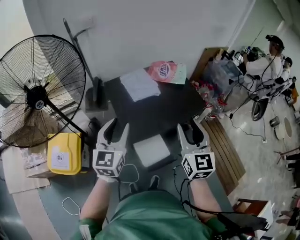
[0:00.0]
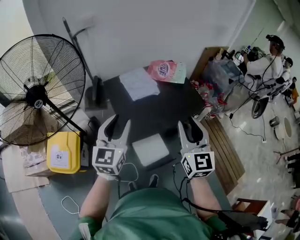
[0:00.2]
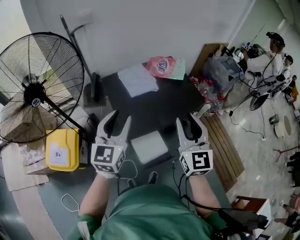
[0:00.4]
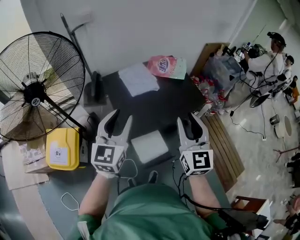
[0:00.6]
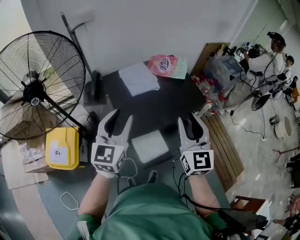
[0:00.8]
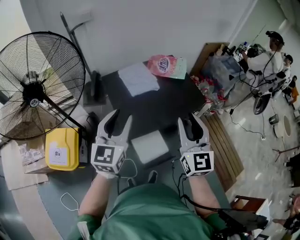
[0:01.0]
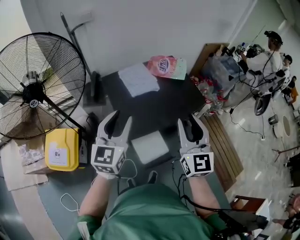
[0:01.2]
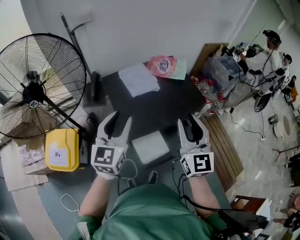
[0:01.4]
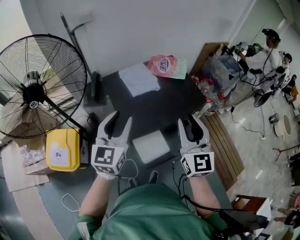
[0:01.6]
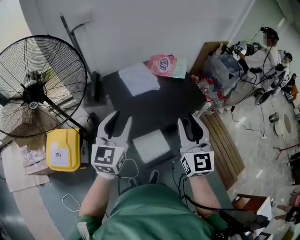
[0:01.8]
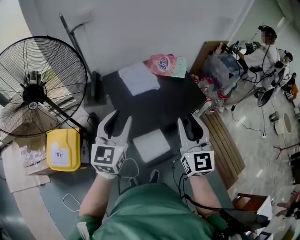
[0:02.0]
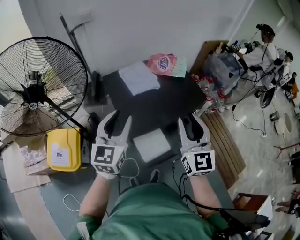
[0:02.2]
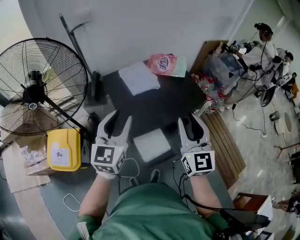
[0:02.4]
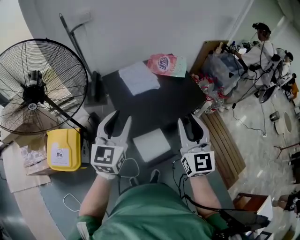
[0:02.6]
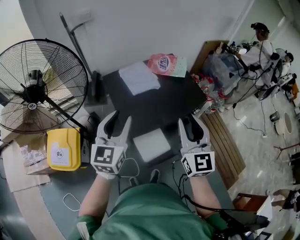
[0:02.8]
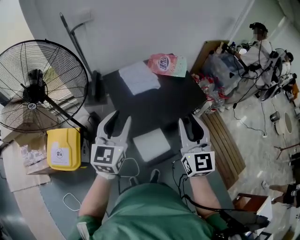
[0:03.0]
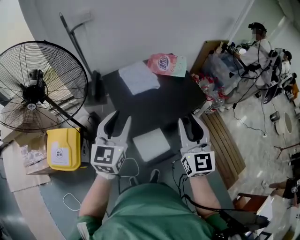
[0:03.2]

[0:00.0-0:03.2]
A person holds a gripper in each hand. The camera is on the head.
0.0 to 1.6 s: The grippers make only small movements.
1.6 to 3.2 s: The two grippers keep their place.

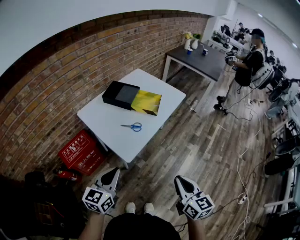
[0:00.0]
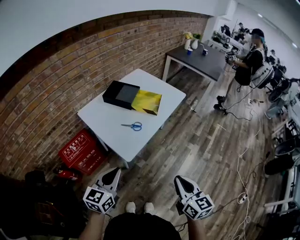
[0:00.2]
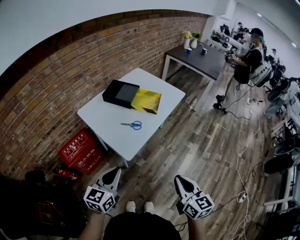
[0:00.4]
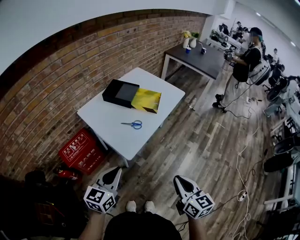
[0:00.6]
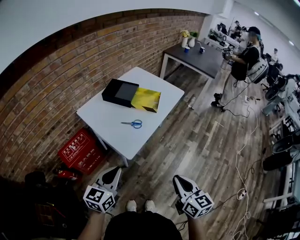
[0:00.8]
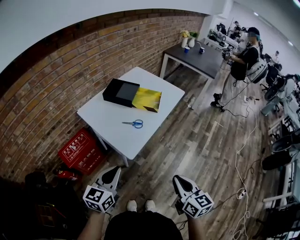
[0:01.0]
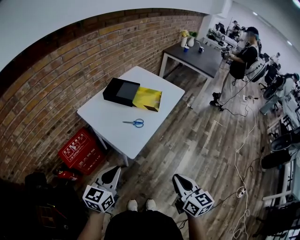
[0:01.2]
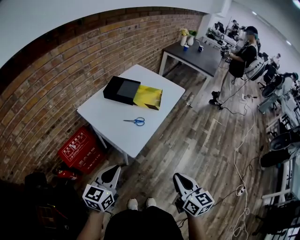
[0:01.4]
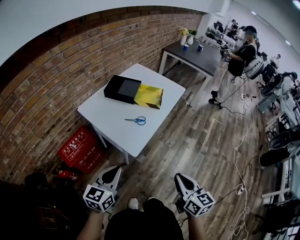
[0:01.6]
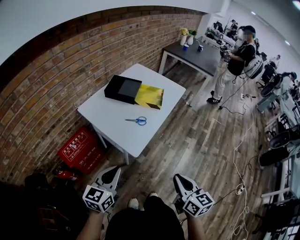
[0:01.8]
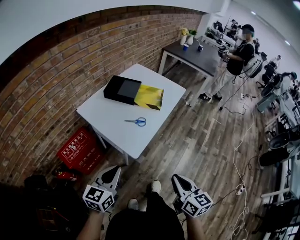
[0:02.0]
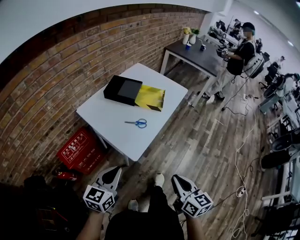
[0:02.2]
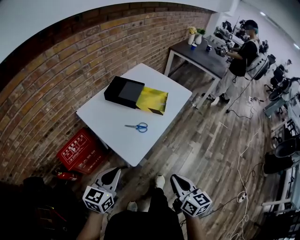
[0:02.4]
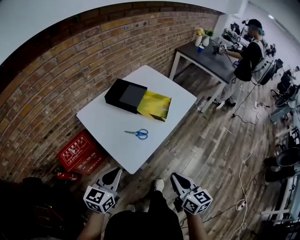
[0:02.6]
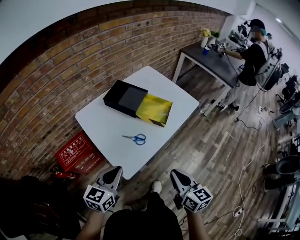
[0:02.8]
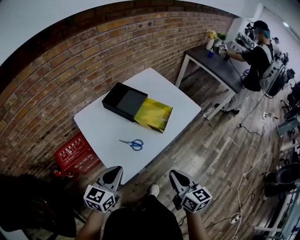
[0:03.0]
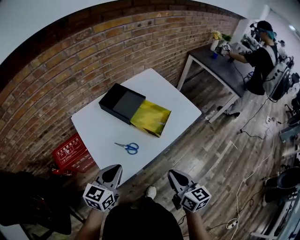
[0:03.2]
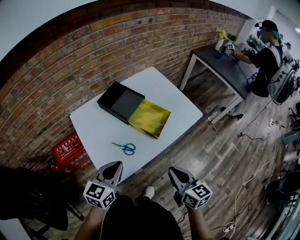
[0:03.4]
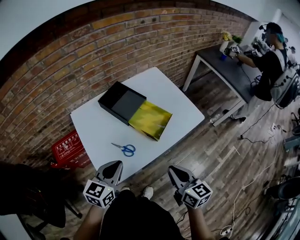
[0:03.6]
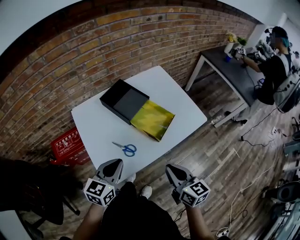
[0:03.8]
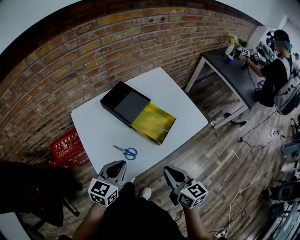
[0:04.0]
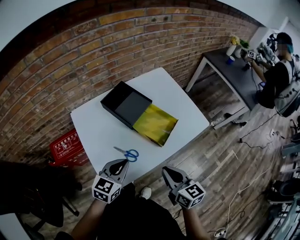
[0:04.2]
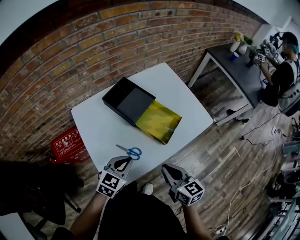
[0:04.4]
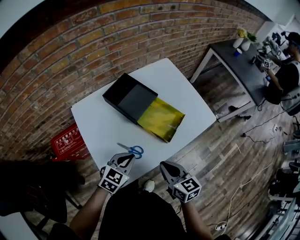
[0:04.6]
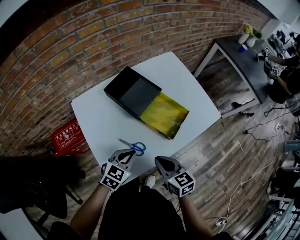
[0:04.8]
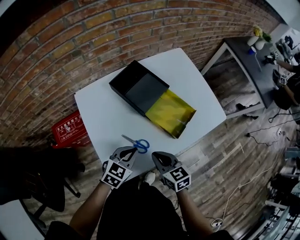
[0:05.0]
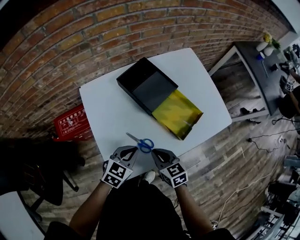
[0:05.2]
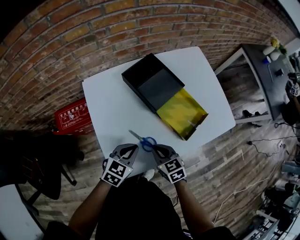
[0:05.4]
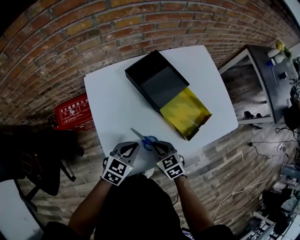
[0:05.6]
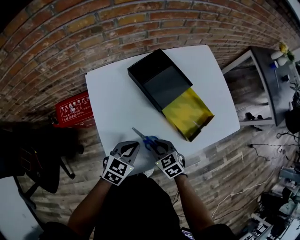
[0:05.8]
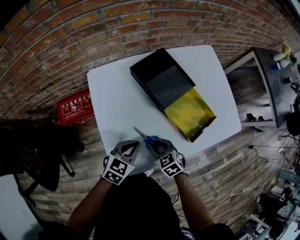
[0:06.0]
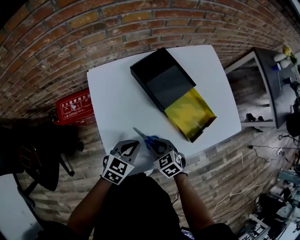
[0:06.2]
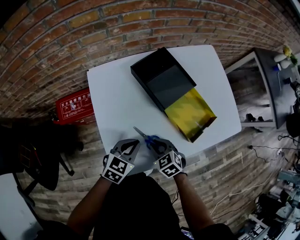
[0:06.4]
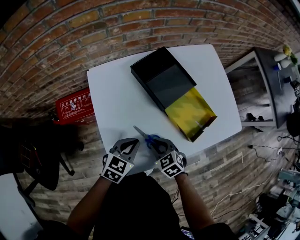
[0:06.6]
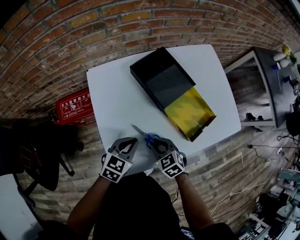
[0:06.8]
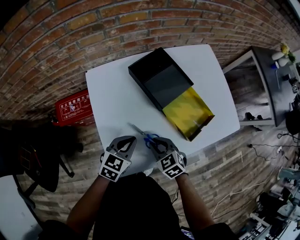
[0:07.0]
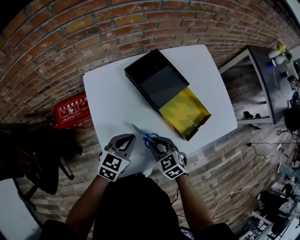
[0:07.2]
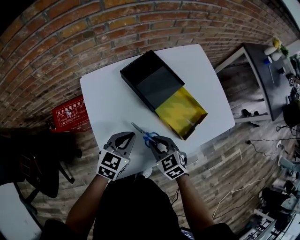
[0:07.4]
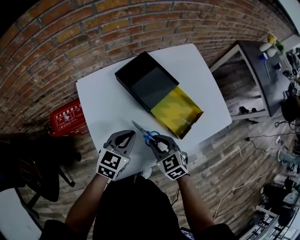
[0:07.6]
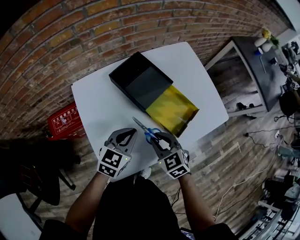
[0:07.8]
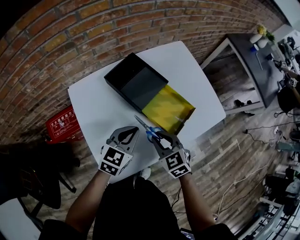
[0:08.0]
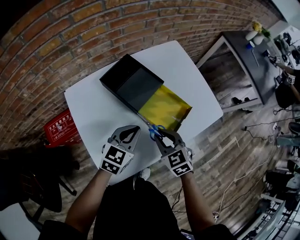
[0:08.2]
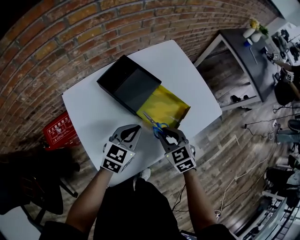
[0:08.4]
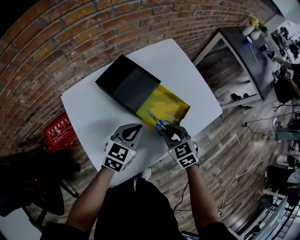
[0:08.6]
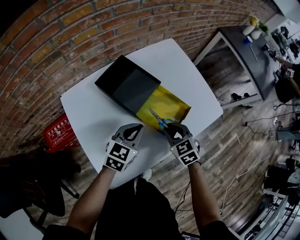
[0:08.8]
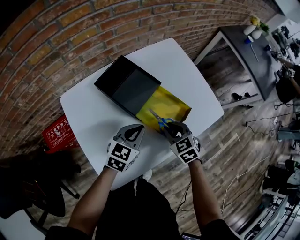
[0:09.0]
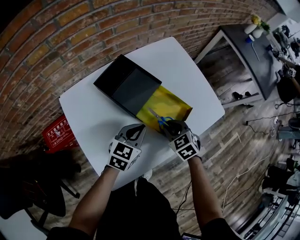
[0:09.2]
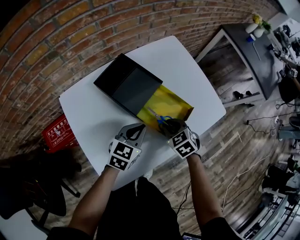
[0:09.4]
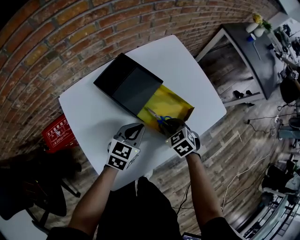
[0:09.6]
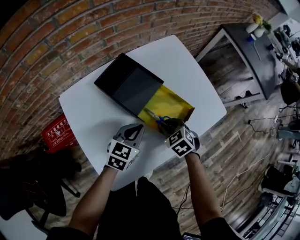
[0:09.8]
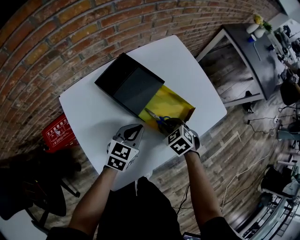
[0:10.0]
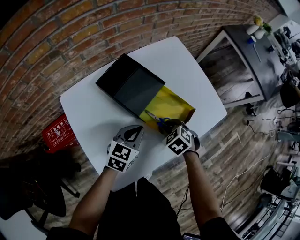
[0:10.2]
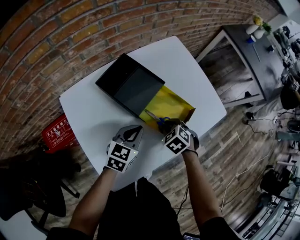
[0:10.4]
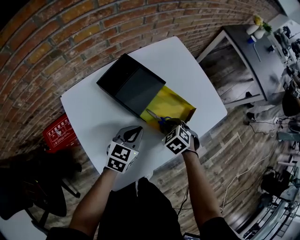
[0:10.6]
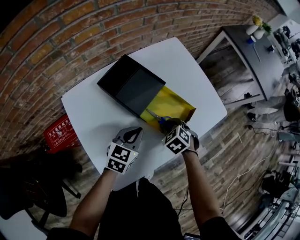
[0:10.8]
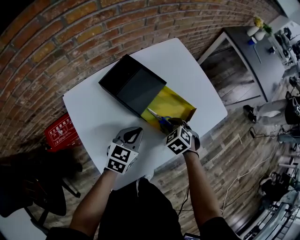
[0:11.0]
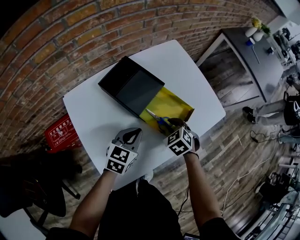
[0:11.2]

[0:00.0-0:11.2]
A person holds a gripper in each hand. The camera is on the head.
0.0 to 1.6 s: The grippers both shift to the left by about 5 cm.
1.6 to 3.2 s: The right gripper heads forward, covering some 30 cm, and rotates roughly 20 degrees. Meanwhile the left gripper is displaced forward and to the right by approximately 25 cm.
3.2 to 4.8 s: The right gripper shifts some 20 cm forward, downward and to the left, and changes its angle by about 20 degrees. Meanwhile the left gripper shifts some 15 cm downward and forward, and changes its angle by approximately 20 degrees.
4.8 to 6.4 s: The right gripper heads downward and to the left, covering roughly 15 cm, and turns by some 40 degrees; the left gripper is displaced to the left by about 5 cm.
6.4 to 8.0 s: The left gripper moves to the right, upward and forward, some 10 cm, while the right gripper is displaced upward and to the right by roughly 15 cm.
8.0 to 9.6 s: The right gripper moves forward, downward and to the right, approximately 10 cm, while the left gripper shifts some 5 cm downward.
9.6 to 11.2 s: The grippers move only a little.

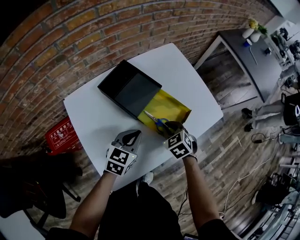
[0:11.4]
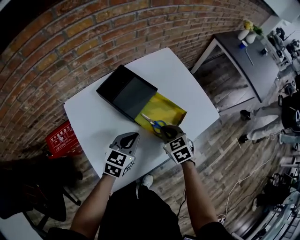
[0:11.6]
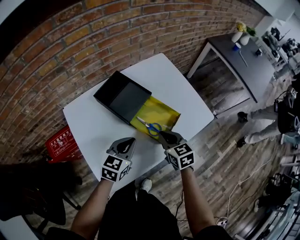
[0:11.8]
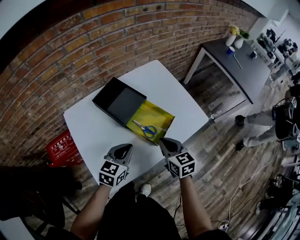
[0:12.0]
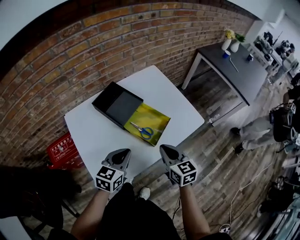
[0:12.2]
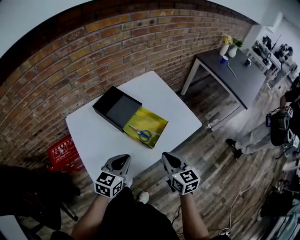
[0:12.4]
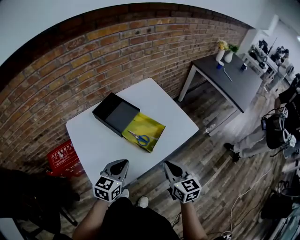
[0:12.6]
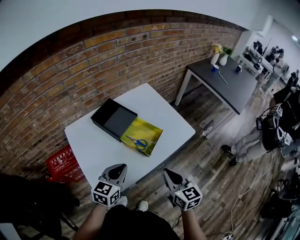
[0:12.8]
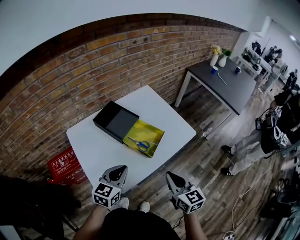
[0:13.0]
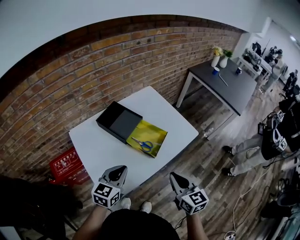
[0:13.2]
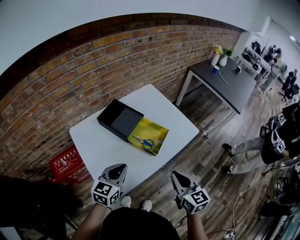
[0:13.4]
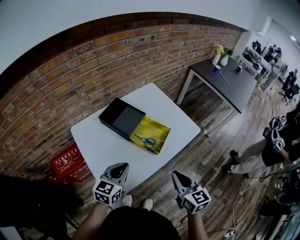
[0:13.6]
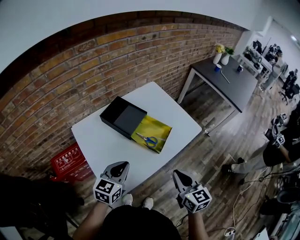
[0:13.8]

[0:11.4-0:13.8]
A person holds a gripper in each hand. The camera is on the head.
11.4 to 12.6 s: The left gripper is displaced backward and upward by roughly 15 cm. Meanwhile the right gripper travels backward, upward and to the right by some 25 cm, and points its fingers some 30 degrees further upward.
12.6 to 13.8 s: The right gripper heads backward, covering roughly 5 cm, while the left gripper heads to the left, covering approximately 5 cm.

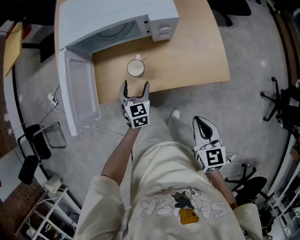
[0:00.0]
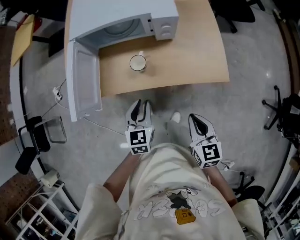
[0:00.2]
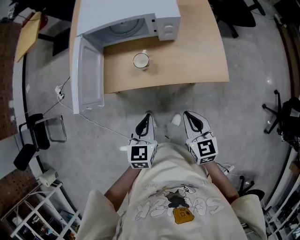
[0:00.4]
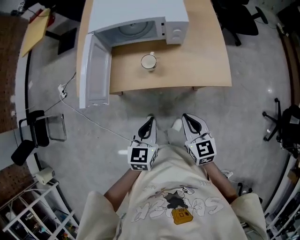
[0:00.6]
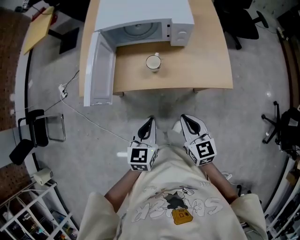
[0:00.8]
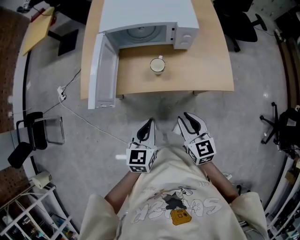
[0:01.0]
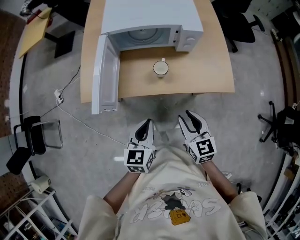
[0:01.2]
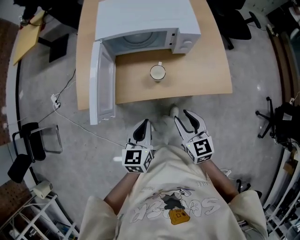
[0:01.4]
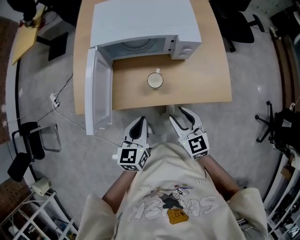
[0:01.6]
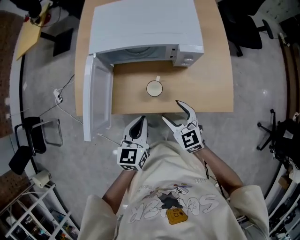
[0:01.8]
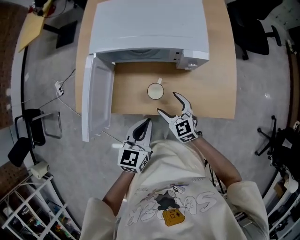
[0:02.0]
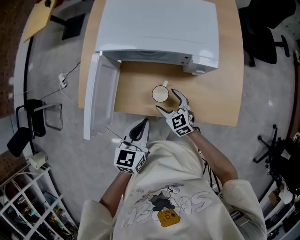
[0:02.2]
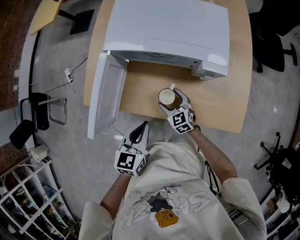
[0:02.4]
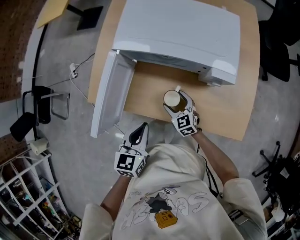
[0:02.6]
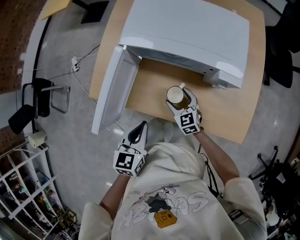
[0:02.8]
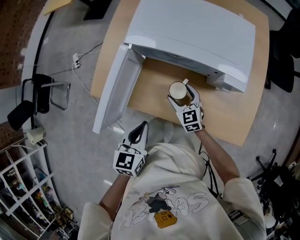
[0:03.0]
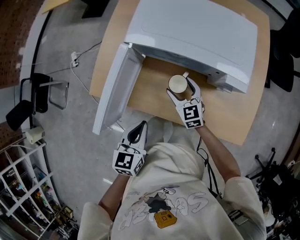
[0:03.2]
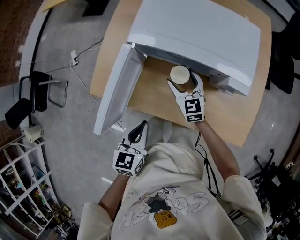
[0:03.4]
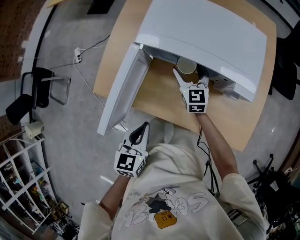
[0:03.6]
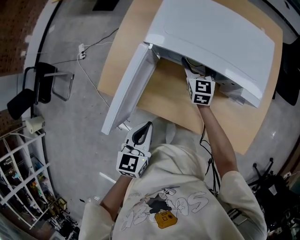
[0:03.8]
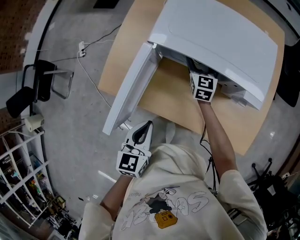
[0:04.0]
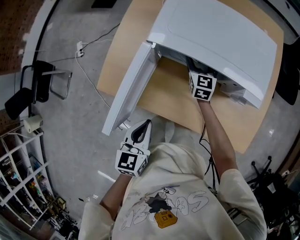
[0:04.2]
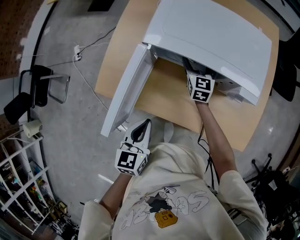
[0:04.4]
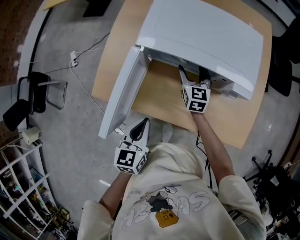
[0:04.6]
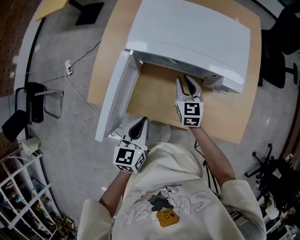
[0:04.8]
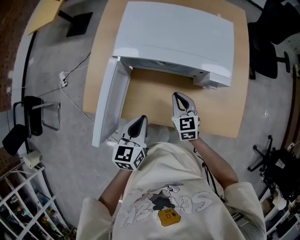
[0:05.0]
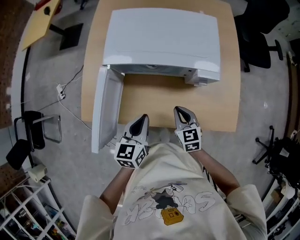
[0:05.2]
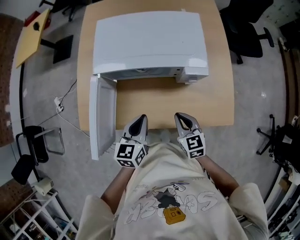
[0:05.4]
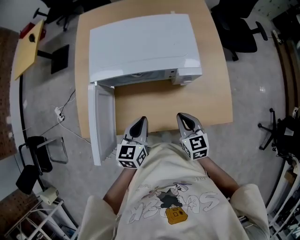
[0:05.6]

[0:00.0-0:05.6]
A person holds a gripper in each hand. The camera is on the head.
0.0 to 1.4 s: The left gripper shifts about 20 cm backward and upward, turns by about 30 degrees, and closes its fingers. The right gripper travels to the left by roughly 15 cm, and opens its fingers.
1.4 to 2.8 s: The right gripper travels forward and downward by approximately 30 cm, turns by roughly 30 degrees, and opens, while the left gripper goes roughly 10 cm forward.
2.8 to 4.2 s: The right gripper moves forward, about 20 cm, and rotates some 30 degrees; the left gripper goes about 5 cm to the left.
4.2 to 5.6 s: The right gripper moves backward and to the right, about 30 cm, and closes up. The left gripper heads to the right and forward, covering approximately 15 cm, and changes its angle by roughly 20 degrees.

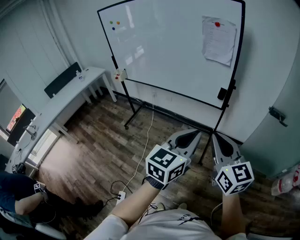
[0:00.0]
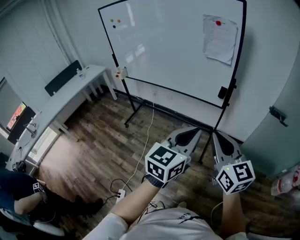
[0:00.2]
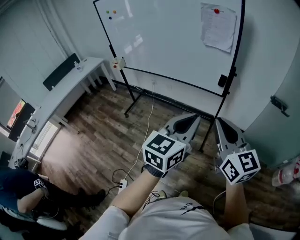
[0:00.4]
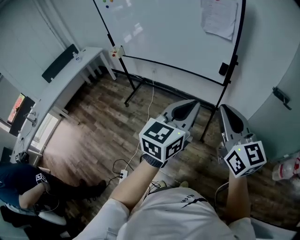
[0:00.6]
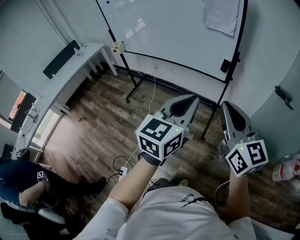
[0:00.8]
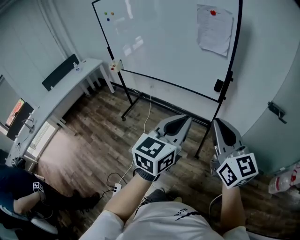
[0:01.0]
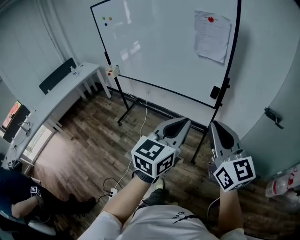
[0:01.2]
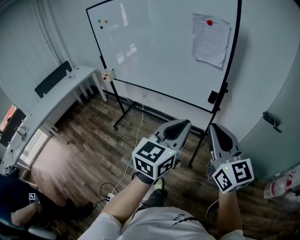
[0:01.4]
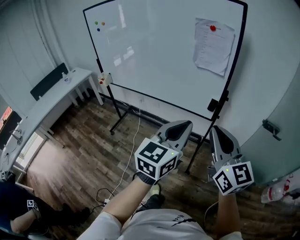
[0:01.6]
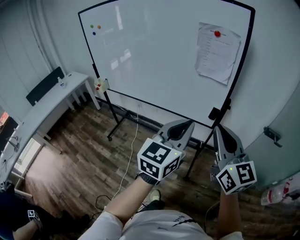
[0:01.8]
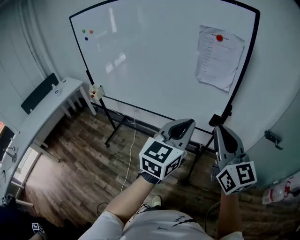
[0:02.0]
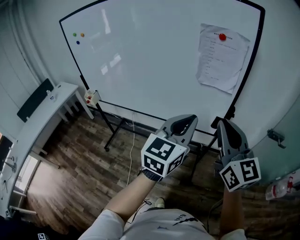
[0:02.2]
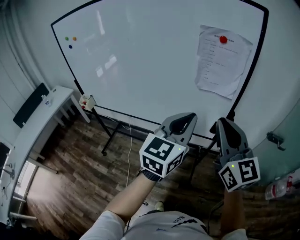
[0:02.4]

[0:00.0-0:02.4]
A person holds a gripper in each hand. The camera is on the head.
0.0 to 1.2 s: The right gripper moves approximately 5 cm. Meanwhile the left gripper shifts by roughly 5 cm.
1.2 to 2.4 s: The grippers both shift forward by approximately 30 cm.
